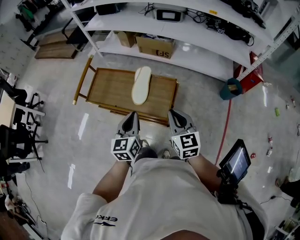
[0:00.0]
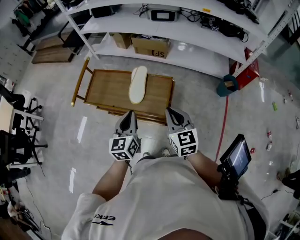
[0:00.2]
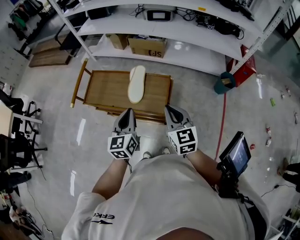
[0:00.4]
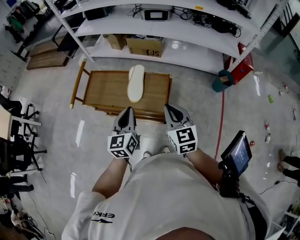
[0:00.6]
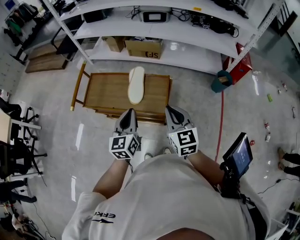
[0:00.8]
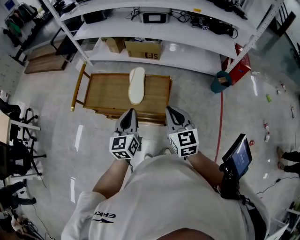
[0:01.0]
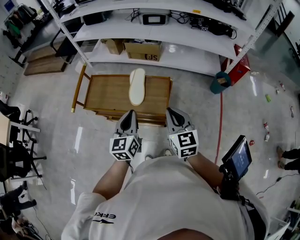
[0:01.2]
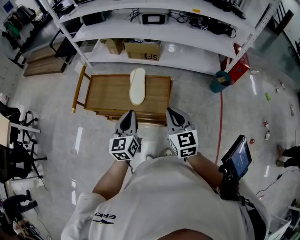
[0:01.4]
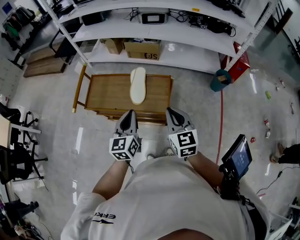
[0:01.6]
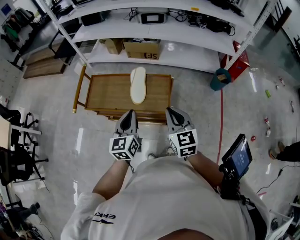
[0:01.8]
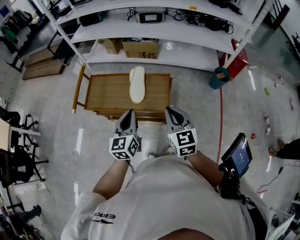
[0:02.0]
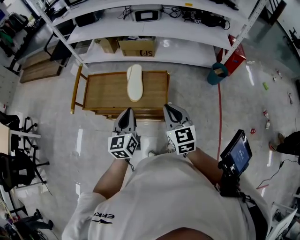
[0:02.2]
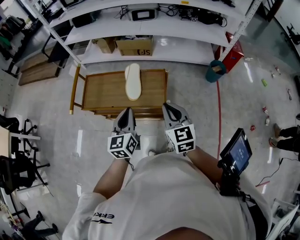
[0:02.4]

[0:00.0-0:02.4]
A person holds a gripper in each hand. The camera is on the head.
0:00.0 to 0:01.2: The right gripper changes place by about 5 cm.
0:01.2 to 0:02.4: The grippers stay close to where they were, moving slightly.

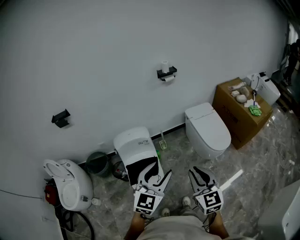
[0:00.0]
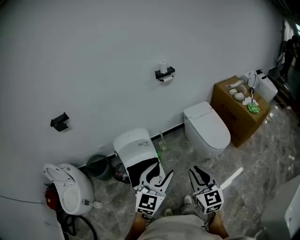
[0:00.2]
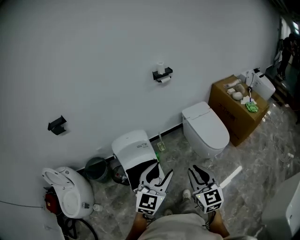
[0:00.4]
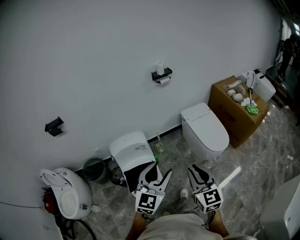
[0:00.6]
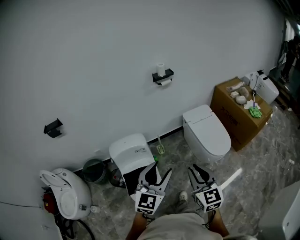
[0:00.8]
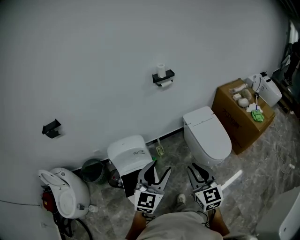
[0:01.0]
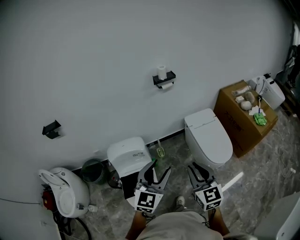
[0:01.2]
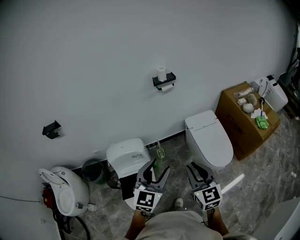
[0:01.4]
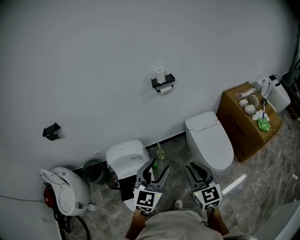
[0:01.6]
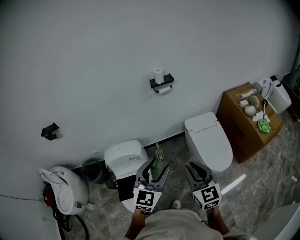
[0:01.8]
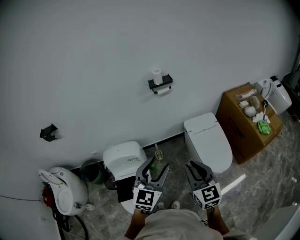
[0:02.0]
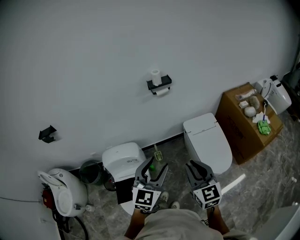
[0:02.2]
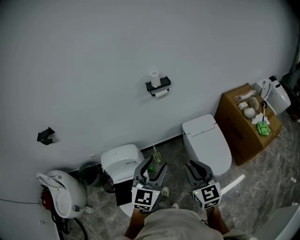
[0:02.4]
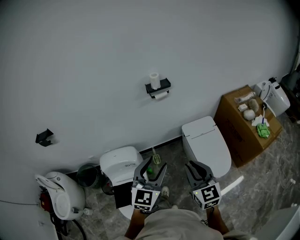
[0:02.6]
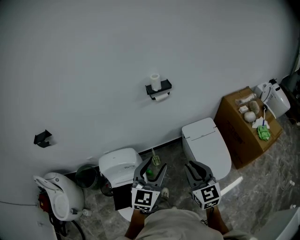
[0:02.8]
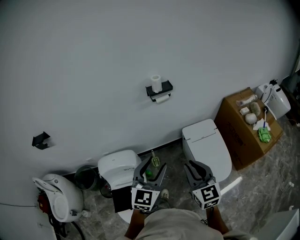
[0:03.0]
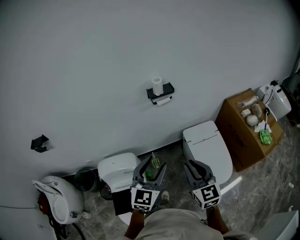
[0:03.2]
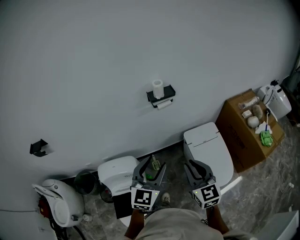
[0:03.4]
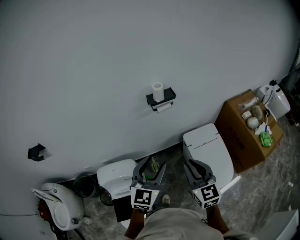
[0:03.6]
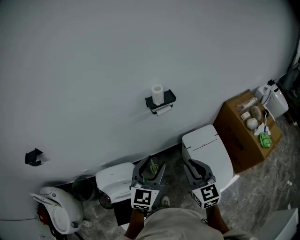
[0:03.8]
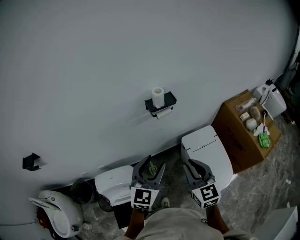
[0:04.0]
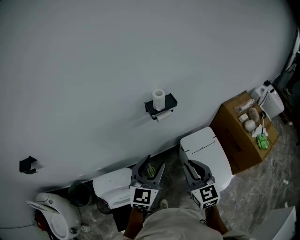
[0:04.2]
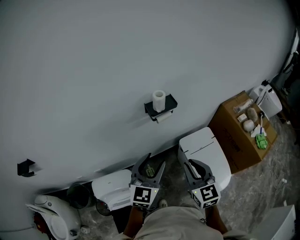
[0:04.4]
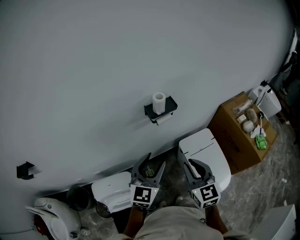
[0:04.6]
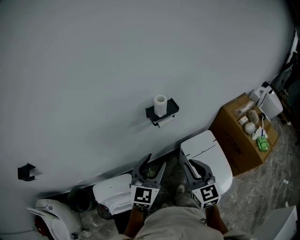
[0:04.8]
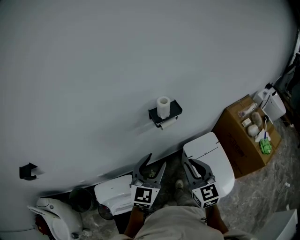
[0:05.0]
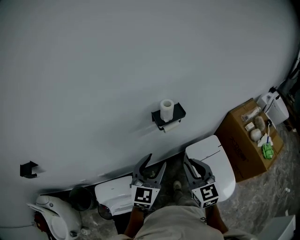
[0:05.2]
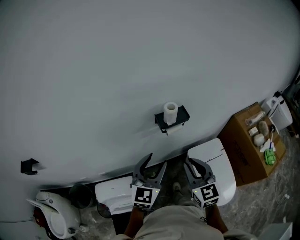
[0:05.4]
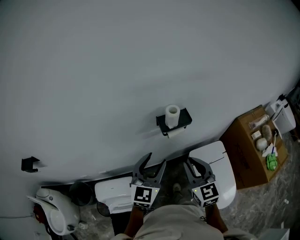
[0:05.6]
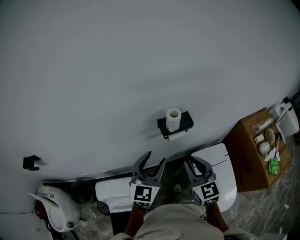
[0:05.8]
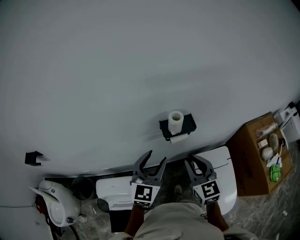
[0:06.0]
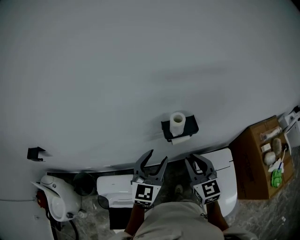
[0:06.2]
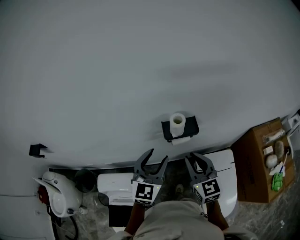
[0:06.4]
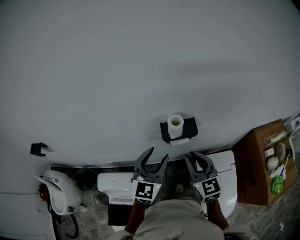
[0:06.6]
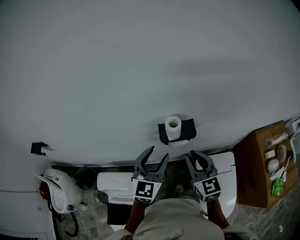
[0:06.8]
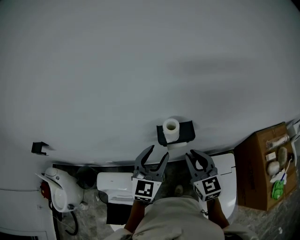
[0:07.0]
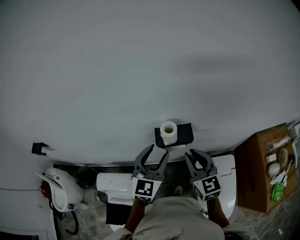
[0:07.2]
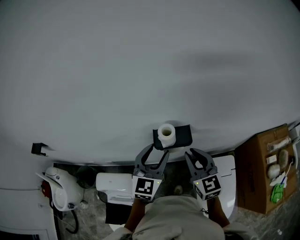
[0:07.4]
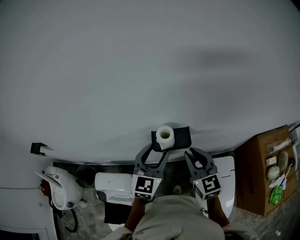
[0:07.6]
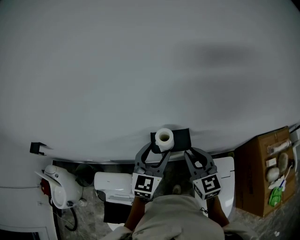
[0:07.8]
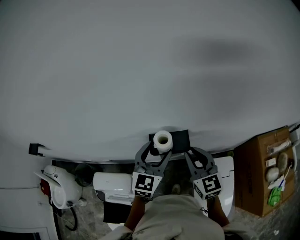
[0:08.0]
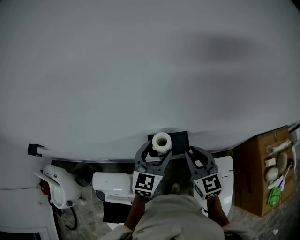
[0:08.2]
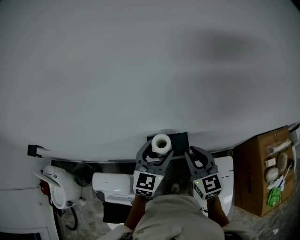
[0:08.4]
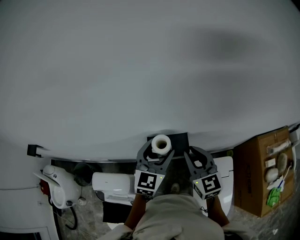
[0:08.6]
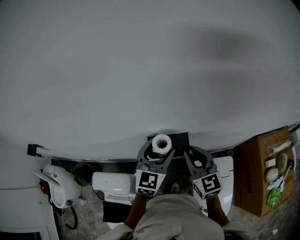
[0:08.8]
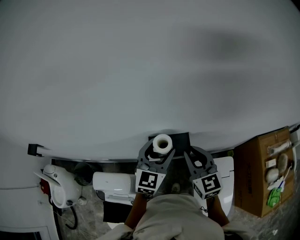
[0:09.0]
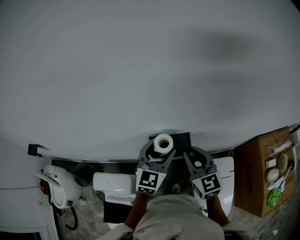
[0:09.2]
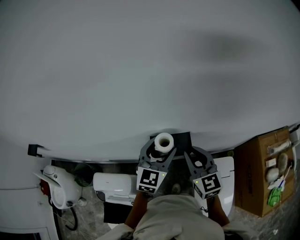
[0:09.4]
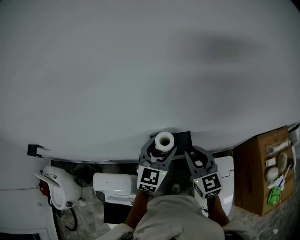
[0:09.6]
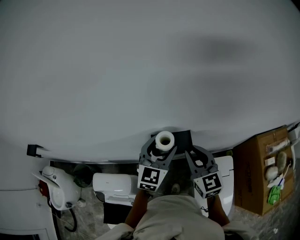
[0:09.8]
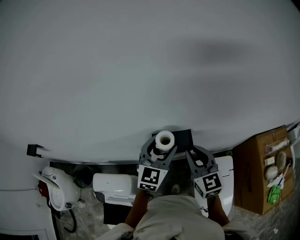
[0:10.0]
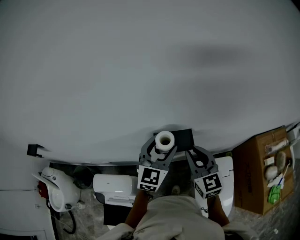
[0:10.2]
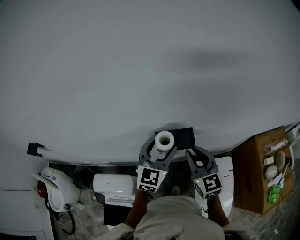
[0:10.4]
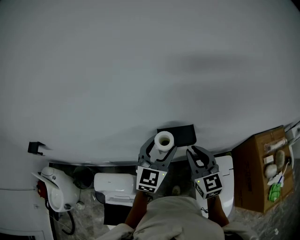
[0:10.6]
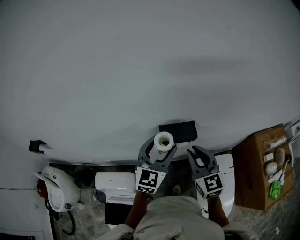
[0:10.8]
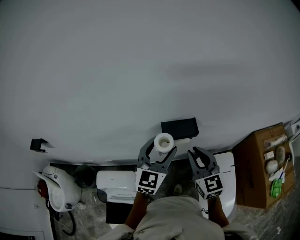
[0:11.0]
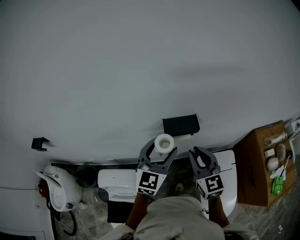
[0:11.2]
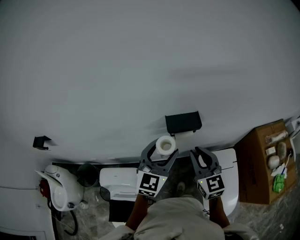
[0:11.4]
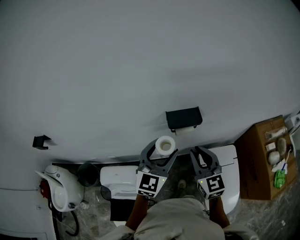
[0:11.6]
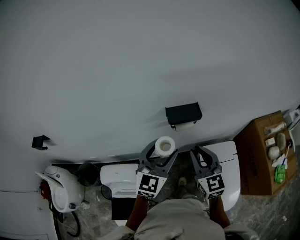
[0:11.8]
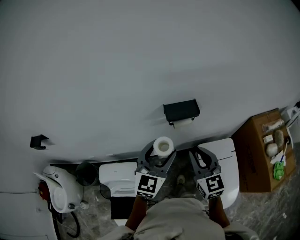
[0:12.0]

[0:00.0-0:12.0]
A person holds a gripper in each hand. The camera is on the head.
0:00.0 to 0:01.6: Both grippers move forward, roughly 25 cm.
0:01.6 to 0:03.0: Both grippers move forward, roughly 15 cm.
0:03.0 to 0:04.4: The two grippers go about 20 cm forward.
0:04.4 to 0:06.0: The grippers both shift forward by about 15 cm.
0:06.0 to 0:07.6: The two grippers go about 10 cm forward and to the right.
0:07.6 to 0:09.0: The left gripper moves roughly 5 cm.
0:09.0 to 0:10.4: The grippers move only a little.
0:10.4 to 0:12.0: Both grippers travel together backward, about 15 cm.

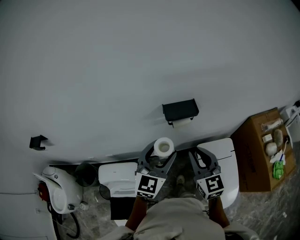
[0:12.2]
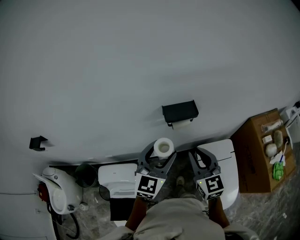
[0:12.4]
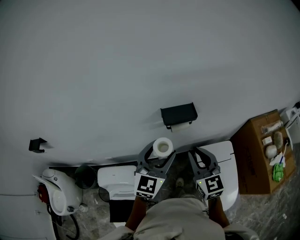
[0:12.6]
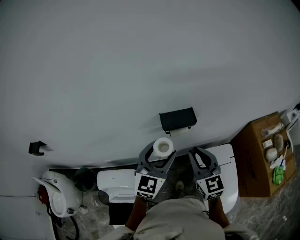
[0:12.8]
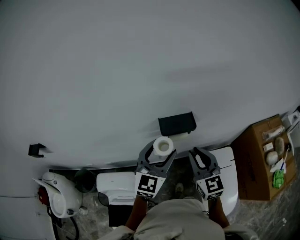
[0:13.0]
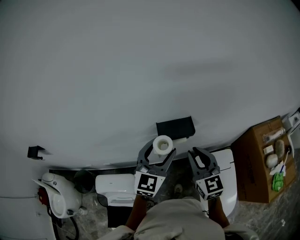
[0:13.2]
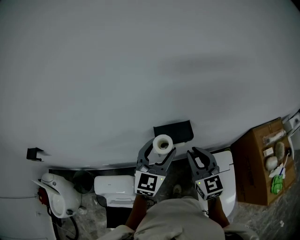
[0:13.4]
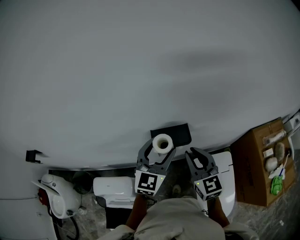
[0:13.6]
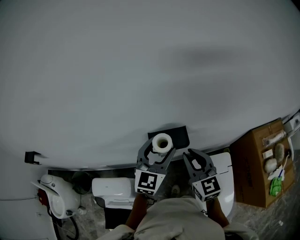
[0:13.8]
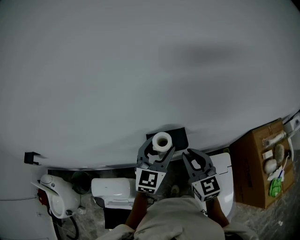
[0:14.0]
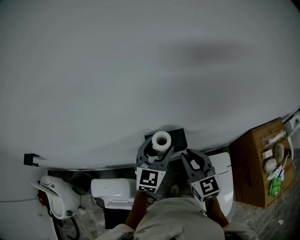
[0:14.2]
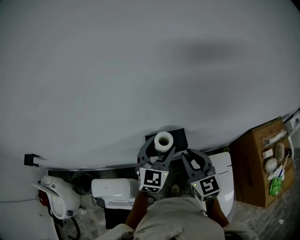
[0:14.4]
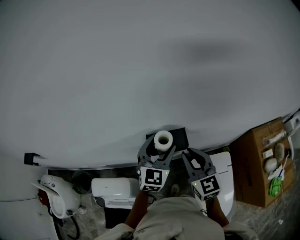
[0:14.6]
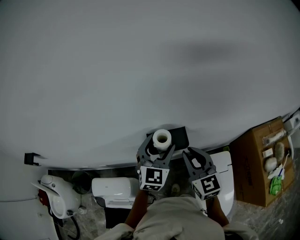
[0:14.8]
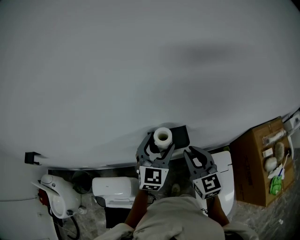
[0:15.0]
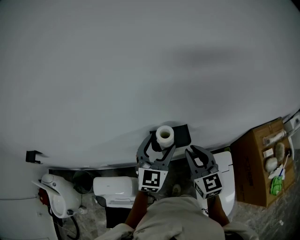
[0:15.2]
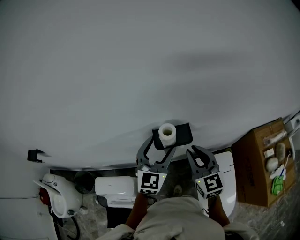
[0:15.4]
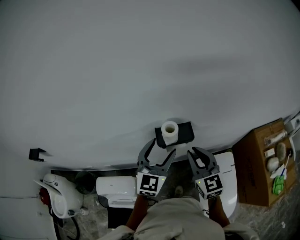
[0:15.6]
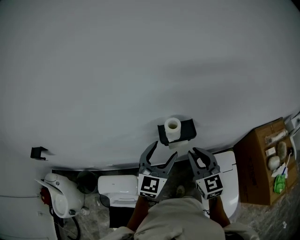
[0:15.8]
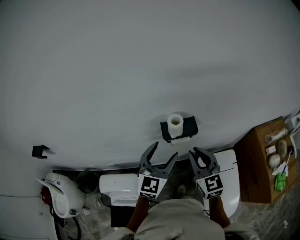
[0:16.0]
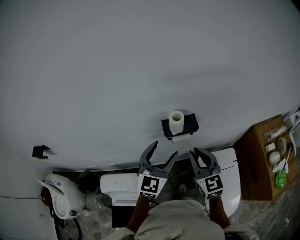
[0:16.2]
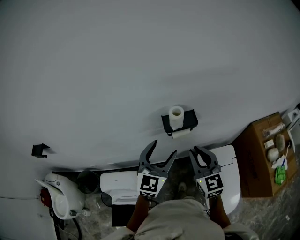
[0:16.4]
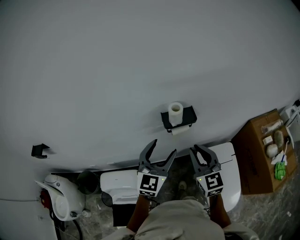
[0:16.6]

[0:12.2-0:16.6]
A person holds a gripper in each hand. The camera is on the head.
0:12.2 to 0:13.6: Both grippers move forward, approximately 15 cm.
0:13.6 to 0:15.2: The grippers move only a little.
0:15.2 to 0:16.6: The grippers both shift backward by about 15 cm.

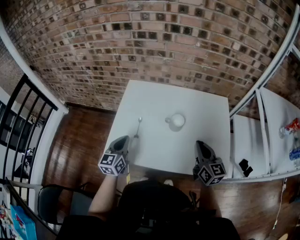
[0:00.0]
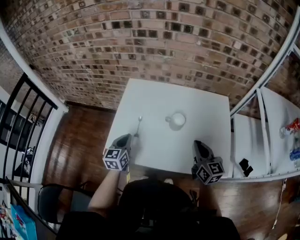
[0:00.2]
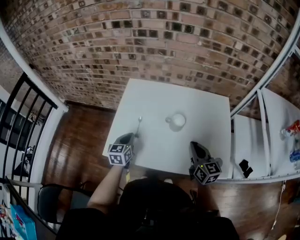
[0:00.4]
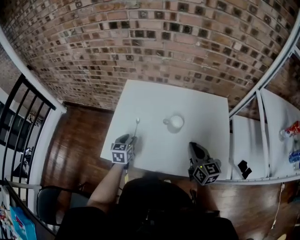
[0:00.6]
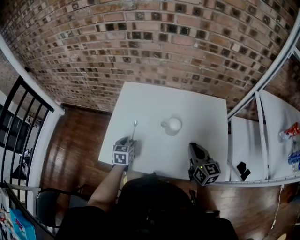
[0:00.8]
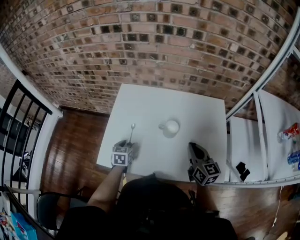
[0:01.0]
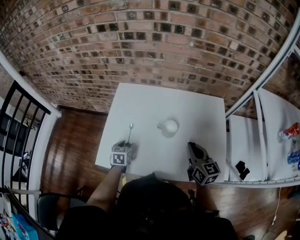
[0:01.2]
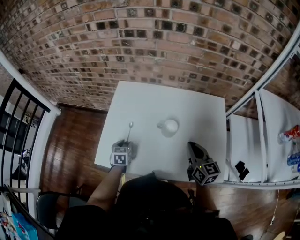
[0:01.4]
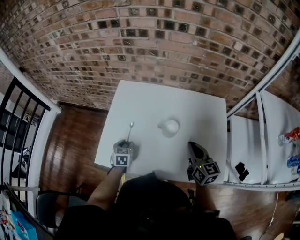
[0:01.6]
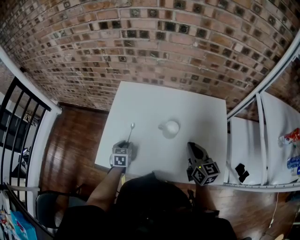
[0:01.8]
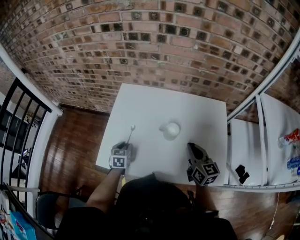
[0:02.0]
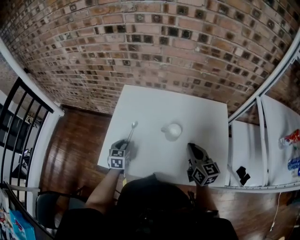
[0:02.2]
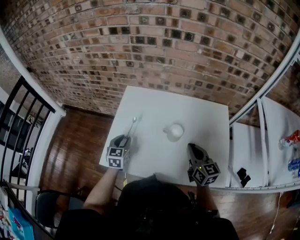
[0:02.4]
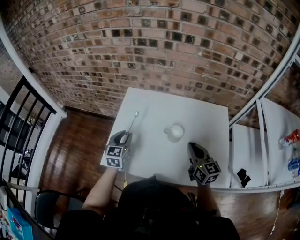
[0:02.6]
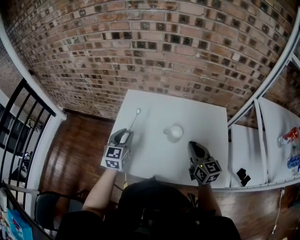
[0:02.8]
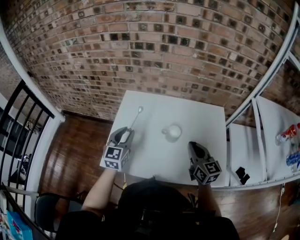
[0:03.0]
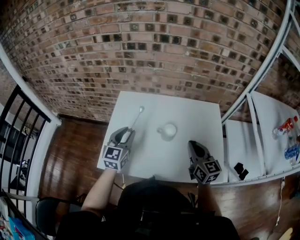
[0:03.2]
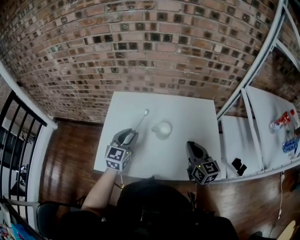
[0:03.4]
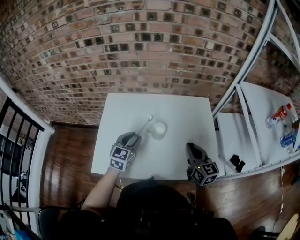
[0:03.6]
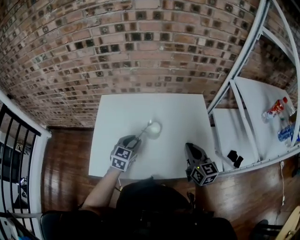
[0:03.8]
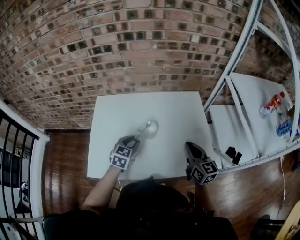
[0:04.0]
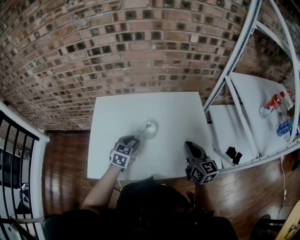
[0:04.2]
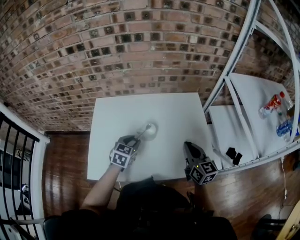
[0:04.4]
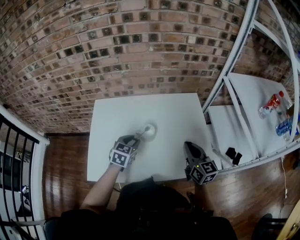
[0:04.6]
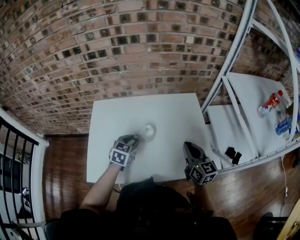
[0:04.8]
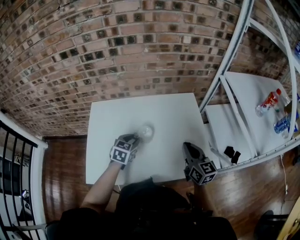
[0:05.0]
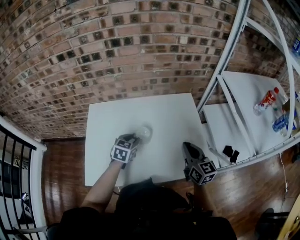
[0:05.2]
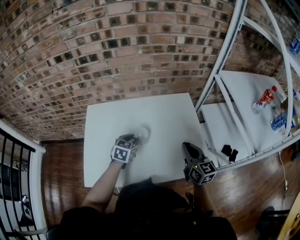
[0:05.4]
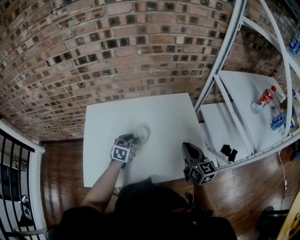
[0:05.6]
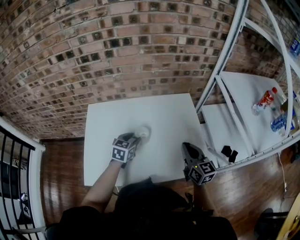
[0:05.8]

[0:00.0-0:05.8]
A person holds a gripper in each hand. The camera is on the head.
0:00.0 to 0:01.4: The right gripper heads forward, covering roughly 5 cm. Meanwhile the left gripper is displaced downward and forward by some 20 cm, changes its angle by some 30 degrees, and opens its fingers.
0:01.4 to 0:02.8: The left gripper shifts some 20 cm upward, and turns by approximately 30 degrees.
0:02.8 to 0:04.4: The right gripper is displaced to the right by approximately 10 cm, while the left gripper shifts about 20 cm to the right, and turns by some 30 degrees.
0:04.4 to 0:05.8: The left gripper changes place by about 5 cm.
